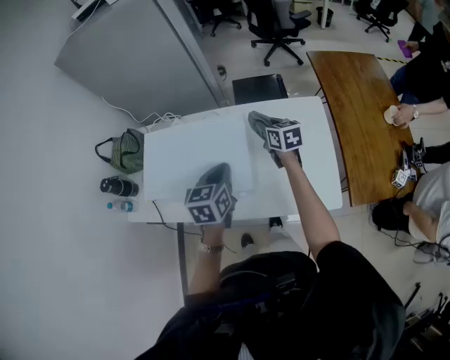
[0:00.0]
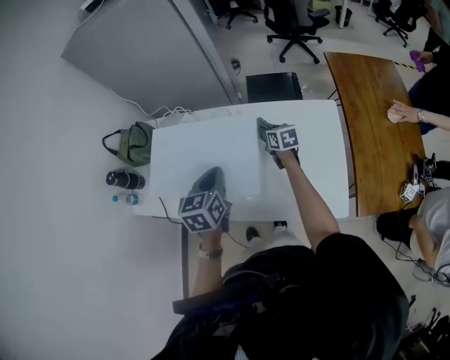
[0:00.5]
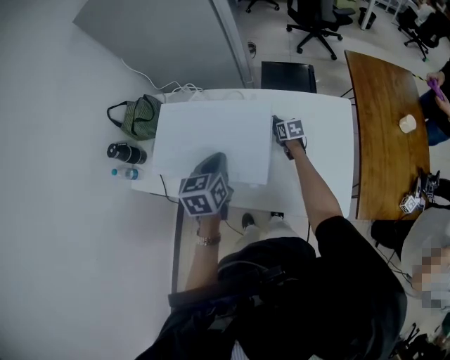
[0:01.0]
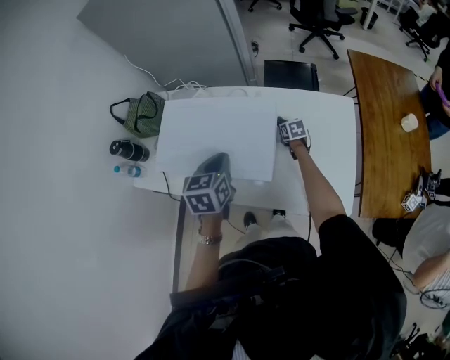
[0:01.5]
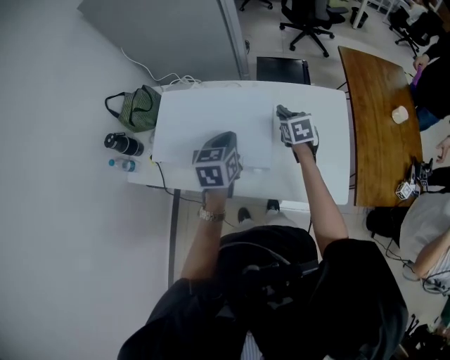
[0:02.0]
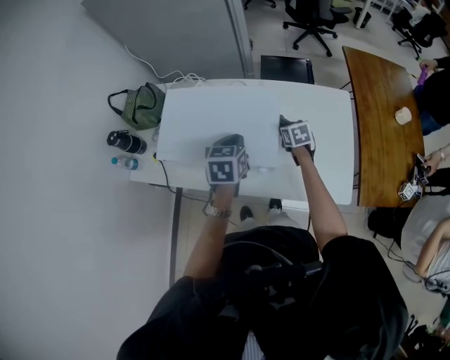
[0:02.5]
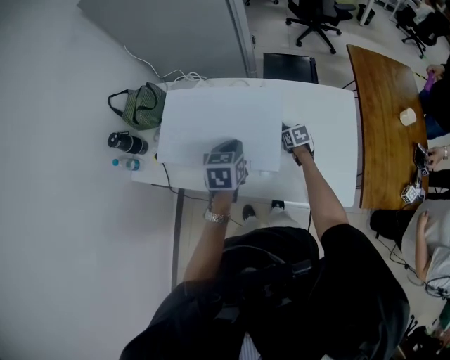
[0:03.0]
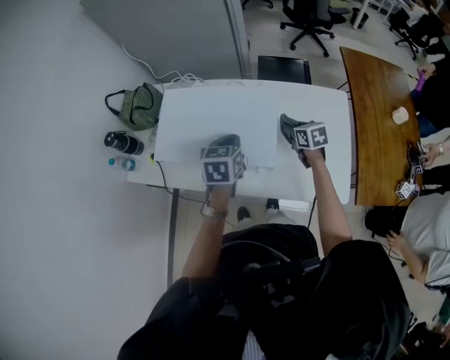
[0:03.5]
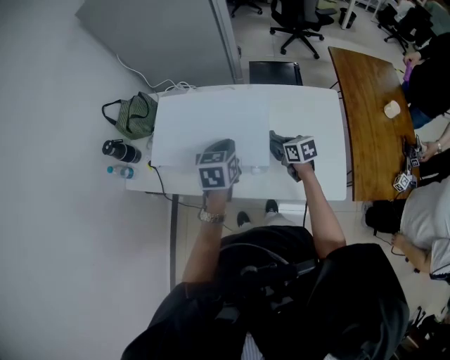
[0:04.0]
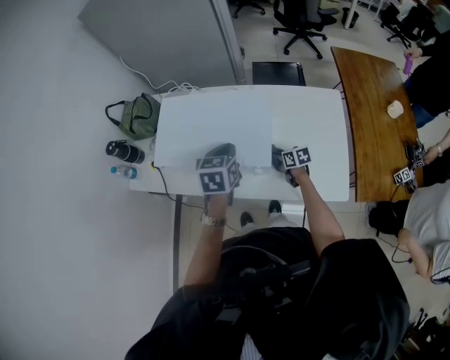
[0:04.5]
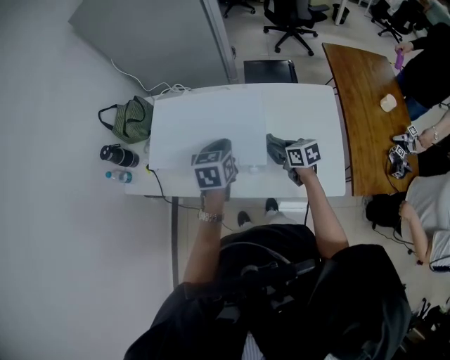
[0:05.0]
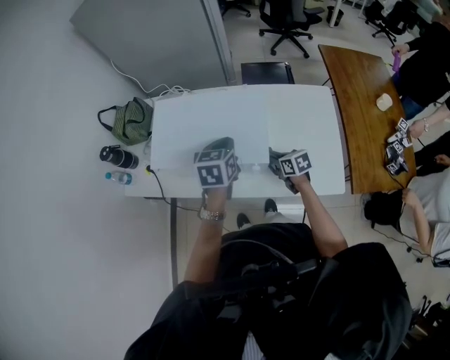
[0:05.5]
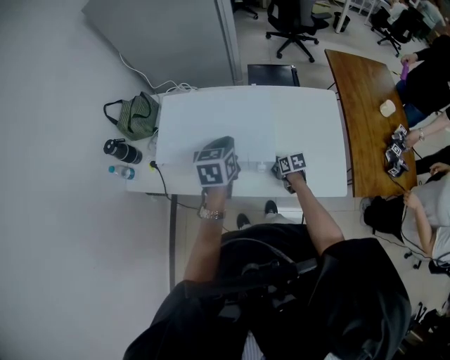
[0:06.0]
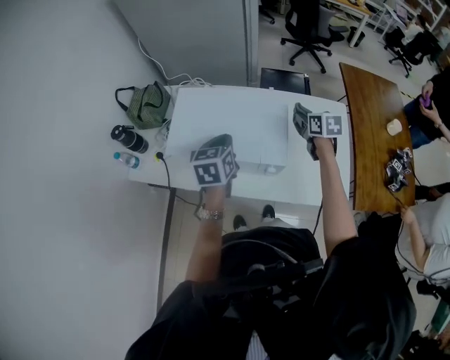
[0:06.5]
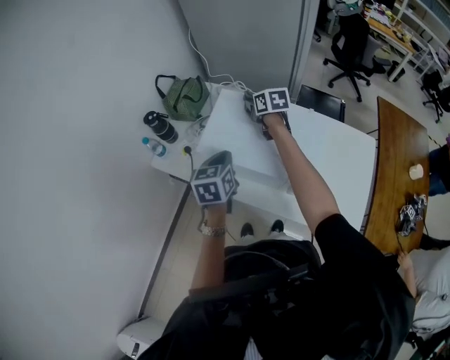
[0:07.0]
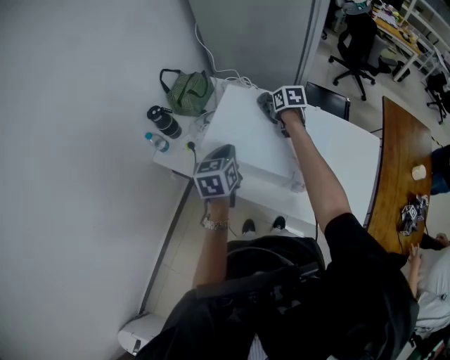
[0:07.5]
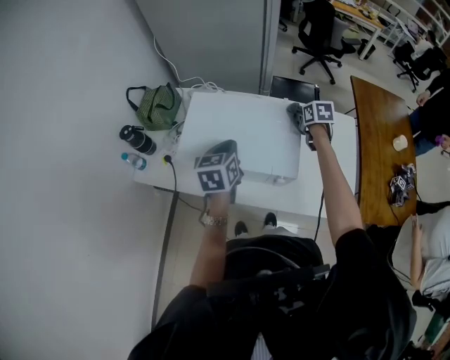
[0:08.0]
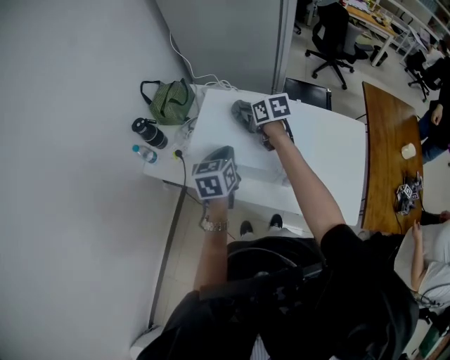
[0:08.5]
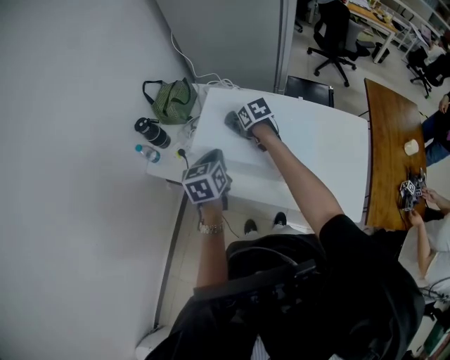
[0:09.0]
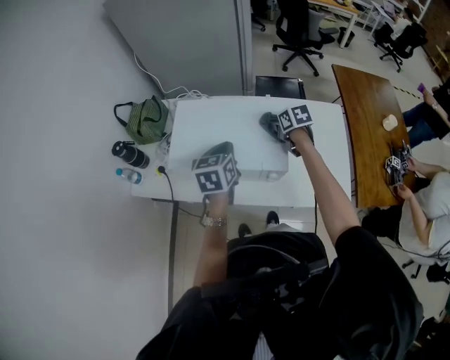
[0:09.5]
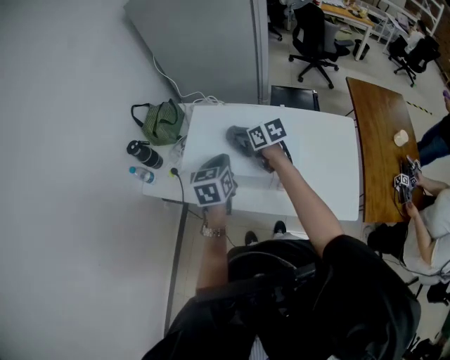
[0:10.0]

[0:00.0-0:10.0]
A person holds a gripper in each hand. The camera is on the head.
0:00.0 to 0:02.0: The right gripper goes downward and returns, some 20 cm each way, and turns by approximately 30 degrees.
0:02.0 to 0:04.0: The right gripper shifts some 10 cm backward and to the left, goes downward and returns, some 20 cm each way, and swivels about 20 degrees.
0:04.0 to 0:06.0: The right gripper swings up and down, some 15 cm each way, with 2 reversals.
0:06.0 to 0:08.0: The right gripper travels upward and forward by about 30 cm. Meanwhile the left gripper goes approximately 10 cm to the left.
0:08.0 to 0:10.0: The right gripper moves left and right over approximately 30 cm, changing direction 2 times, and rotates approximately 30 degrees, while the left gripper goes left and right, approximately 15 cm each way, reversing 2 times.

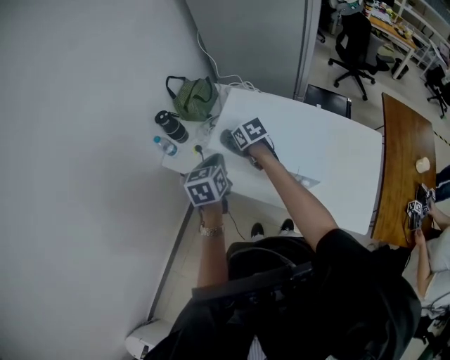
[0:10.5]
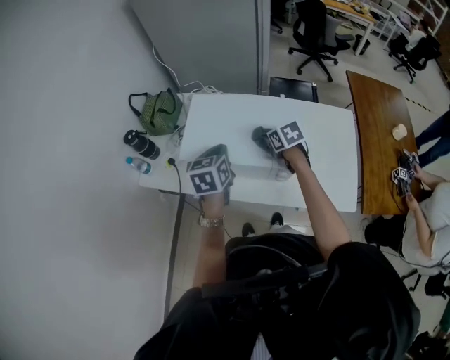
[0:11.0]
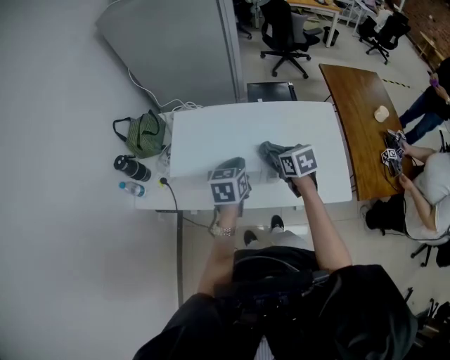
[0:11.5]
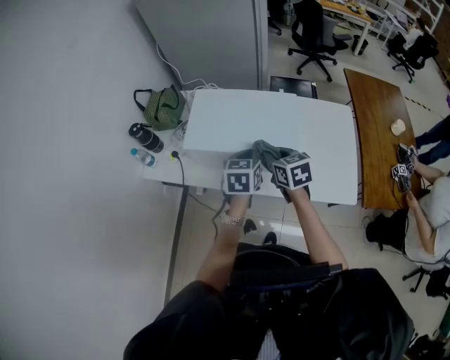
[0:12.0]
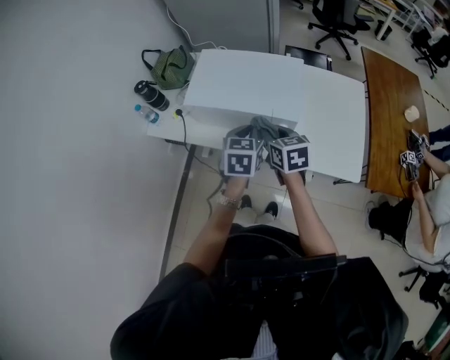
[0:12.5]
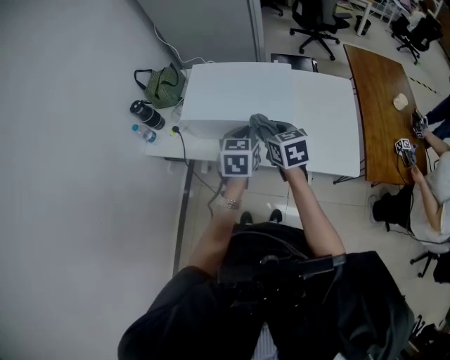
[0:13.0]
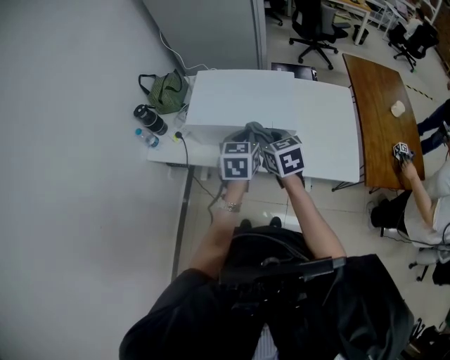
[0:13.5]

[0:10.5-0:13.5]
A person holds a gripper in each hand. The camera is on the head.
0:10.5 to 0:12.0: The right gripper changes place by about 25 cm, and rotates approximately 30 degrees, while the left gripper changes place by roughly 20 cm, and swivels approximately 30 degrees.
0:12.0 to 0:13.5: The grippers both shift backward by about 5 cm.

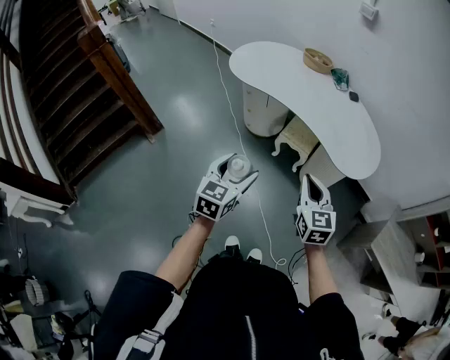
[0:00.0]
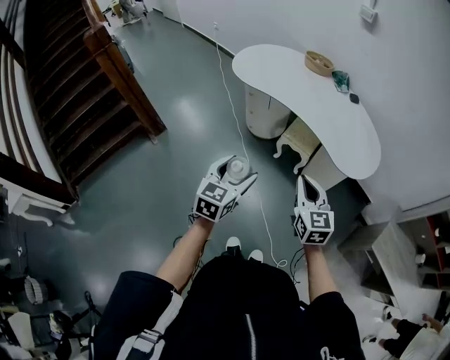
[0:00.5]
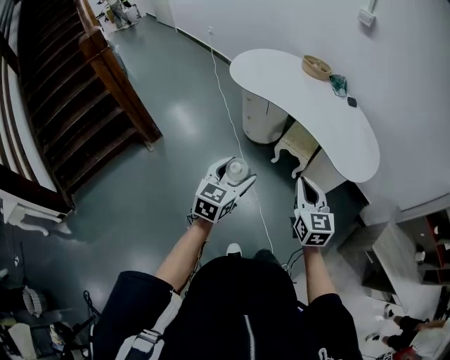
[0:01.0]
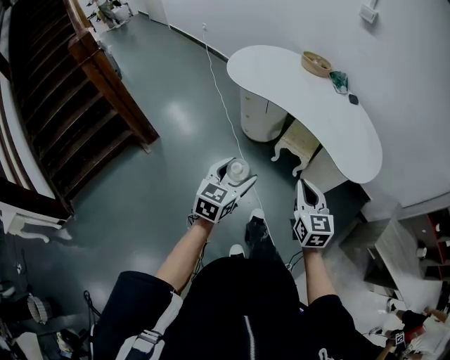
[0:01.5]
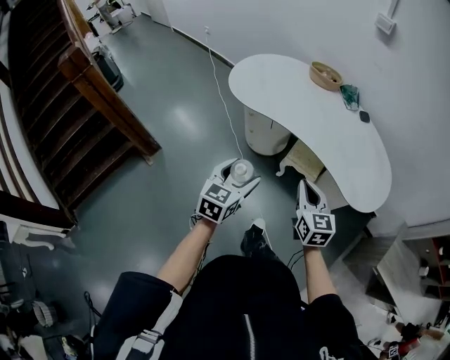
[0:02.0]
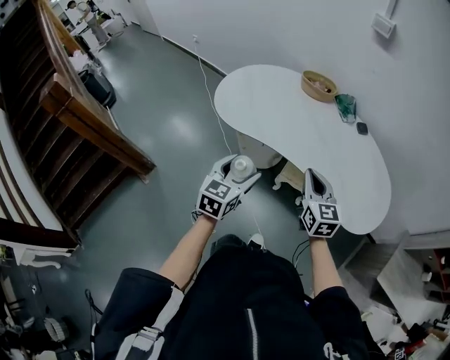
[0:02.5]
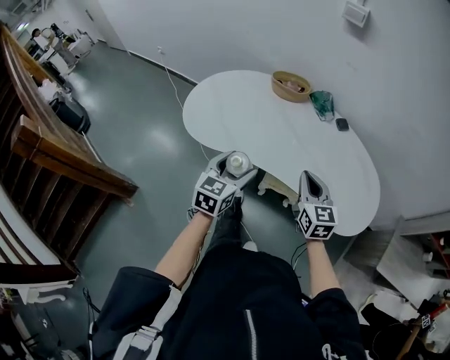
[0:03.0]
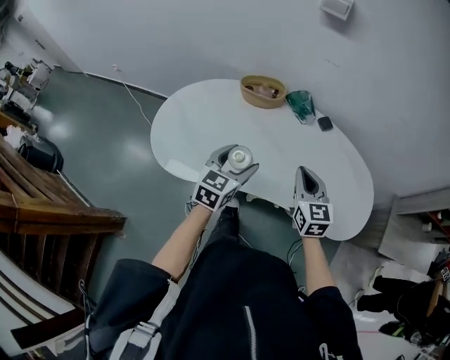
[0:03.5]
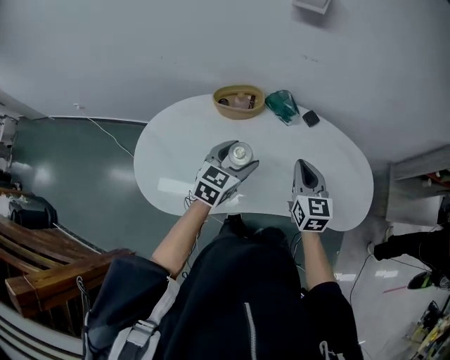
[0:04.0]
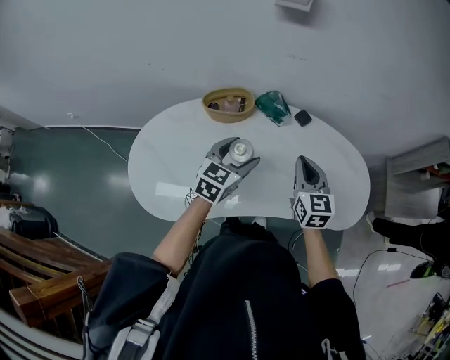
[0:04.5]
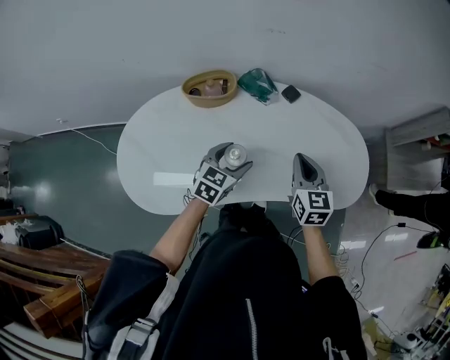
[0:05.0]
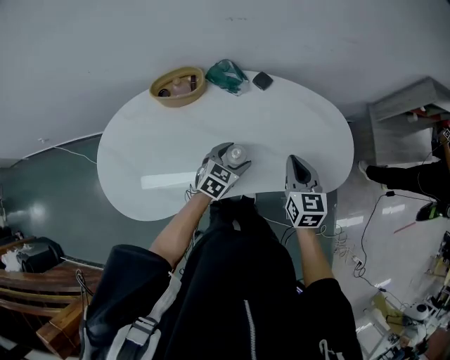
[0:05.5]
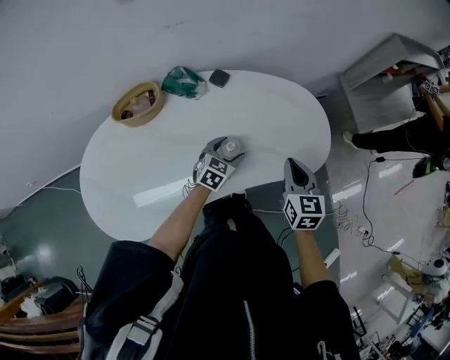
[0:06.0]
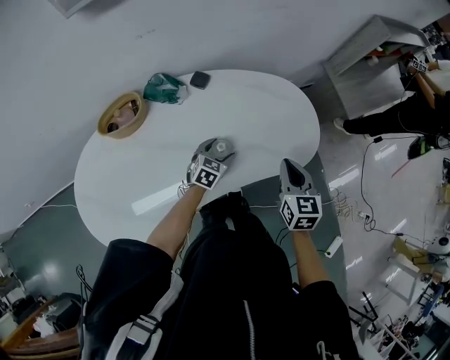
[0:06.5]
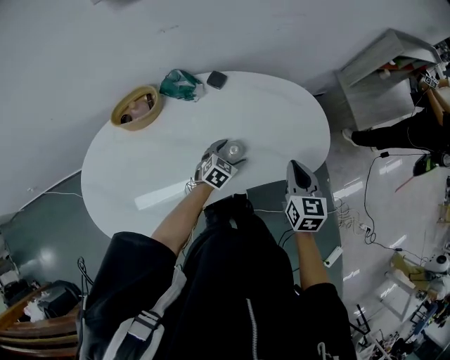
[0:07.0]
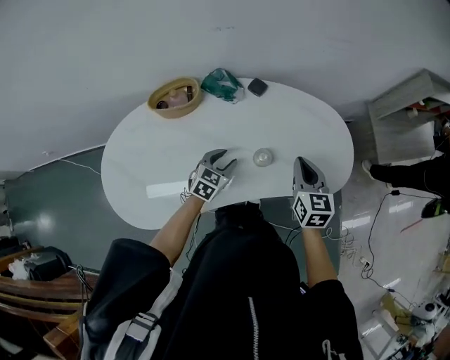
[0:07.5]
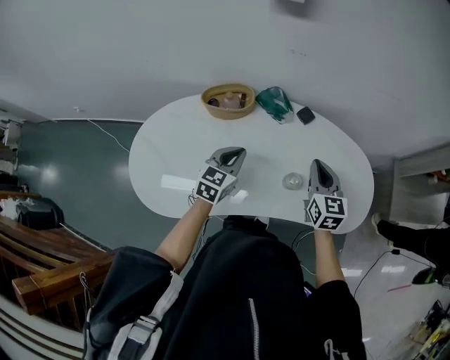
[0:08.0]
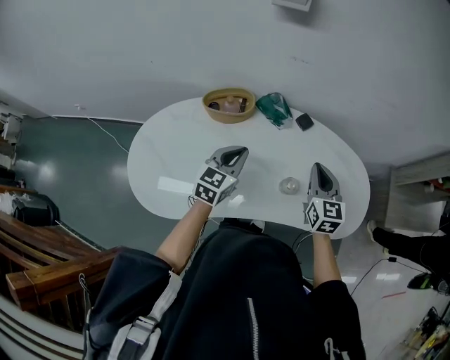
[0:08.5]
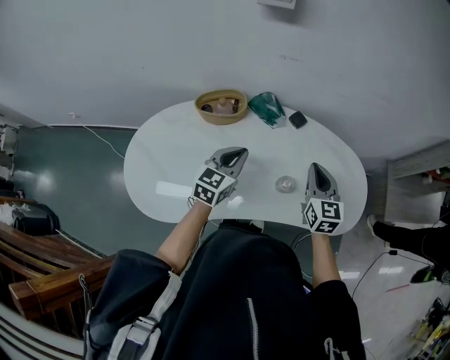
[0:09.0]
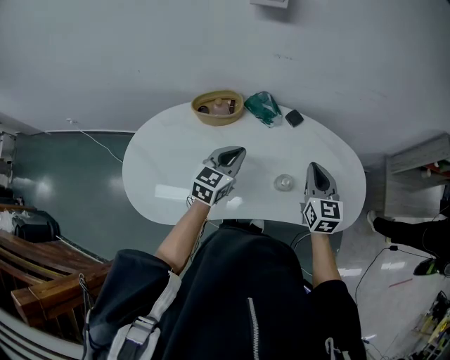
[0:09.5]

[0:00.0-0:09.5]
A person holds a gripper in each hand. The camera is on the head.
0:00.0 to 0:02.0: The left gripper shifts some 20 cm forward. Meanwhile the right gripper moves forward and to the left, approximately 20 cm.
0:02.0 to 0:04.0: The two grippers travel together, approximately 50 cm. The right gripper turns by approximately 40 degrees. Meanwhile the left gripper turns by roughly 40 degrees.
0:04.0 to 0:05.5: The right gripper moves to the right and downward, roughly 15 cm. Meanwhile the left gripper goes some 20 cm downward and to the right, and changes its angle by about 20 degrees.
0:05.5 to 0:07.5: The right gripper reaches some 15 cm to the right, then returns. Meanwhile the left gripper reaches approximately 10 cm to the right, then returns, and closes its fingers.
0:07.5 to 0:09.5: The left gripper travels upward and to the left by about 20 cm, changes its angle by about 20 degrees, and closes its fingers. The right gripper travels to the left and forward by about 10 cm.

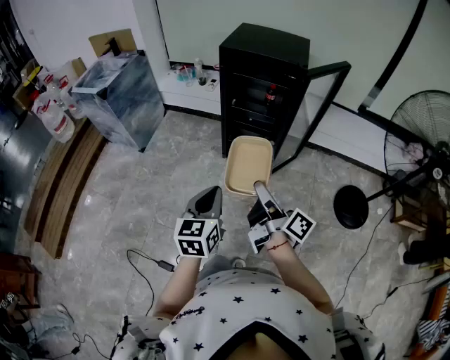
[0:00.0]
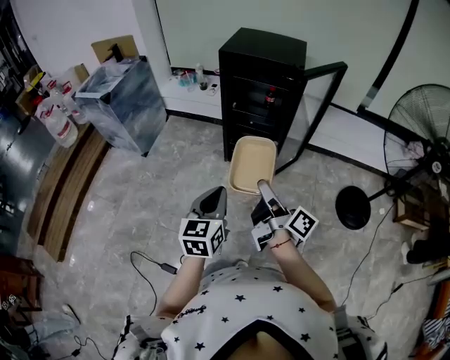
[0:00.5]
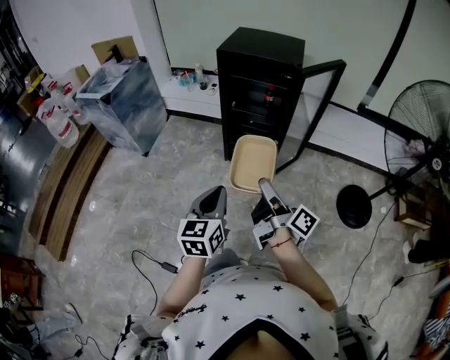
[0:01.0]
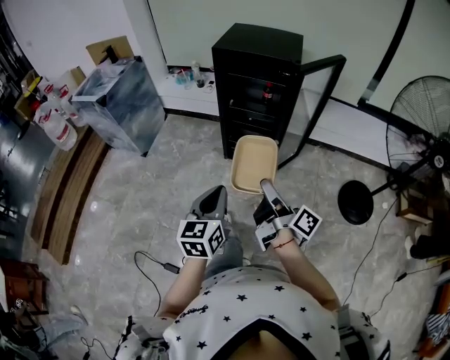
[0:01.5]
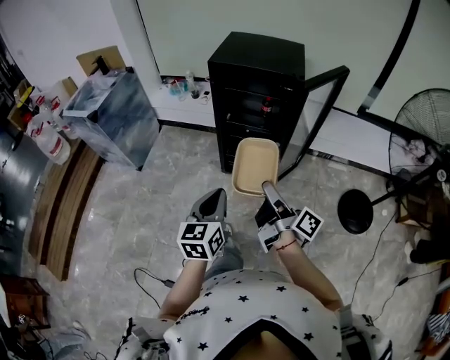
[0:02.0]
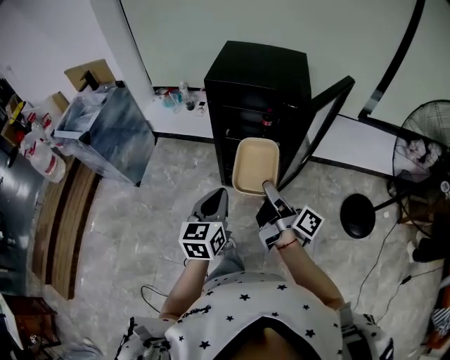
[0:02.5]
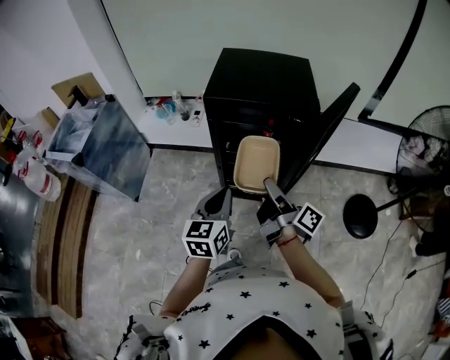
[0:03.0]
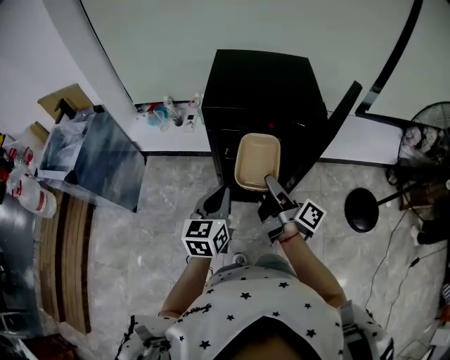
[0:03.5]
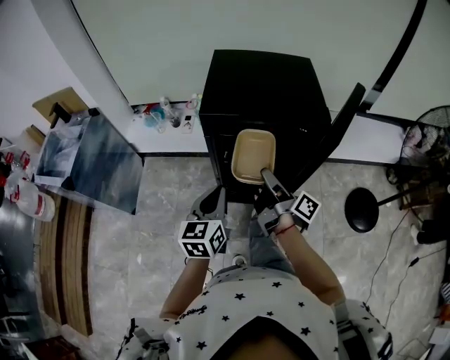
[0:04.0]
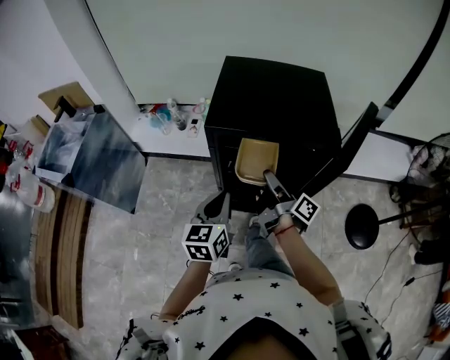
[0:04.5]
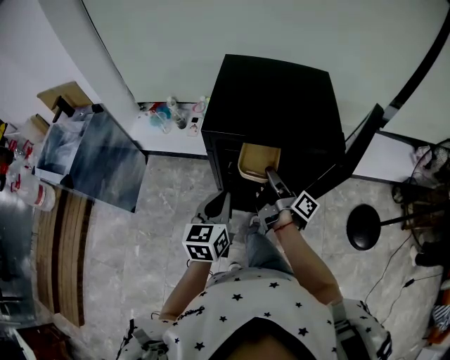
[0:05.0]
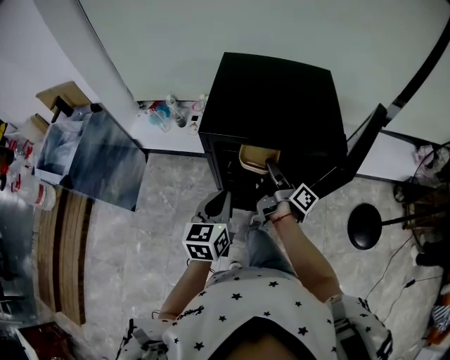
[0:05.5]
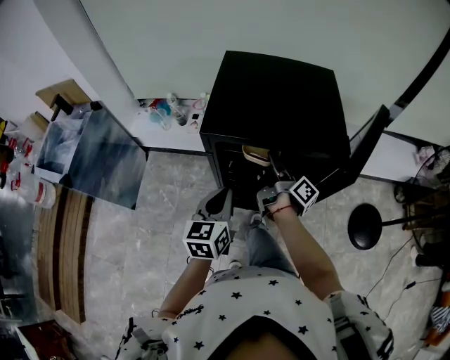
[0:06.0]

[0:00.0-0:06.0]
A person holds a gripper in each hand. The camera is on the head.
0:00.0 to 0:02.0: Both grippers travel together forward, some 10 cm.
0:02.0 to 0:04.0: Both grippers travel together forward, about 30 cm.
0:04.0 to 0:06.0: The left gripper travels forward by roughly 10 cm; the right gripper is displaced forward by roughly 15 cm.
